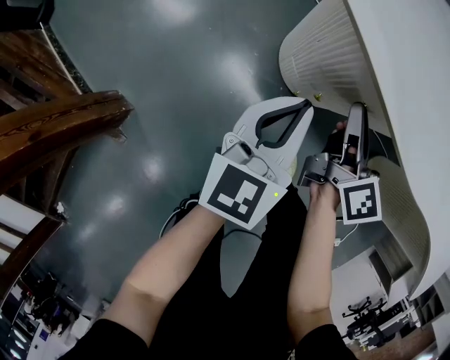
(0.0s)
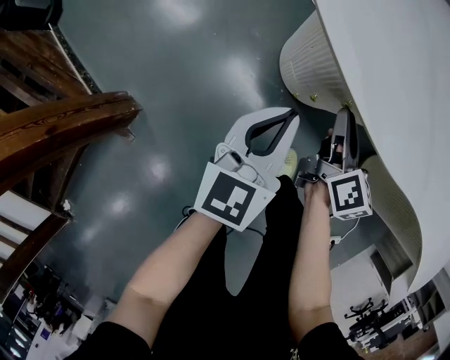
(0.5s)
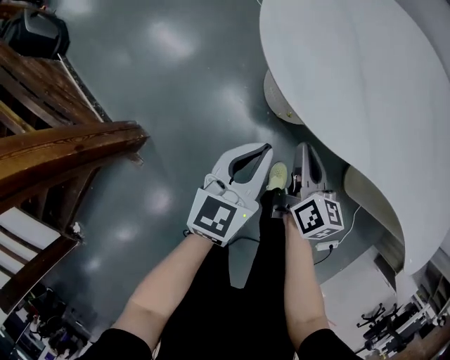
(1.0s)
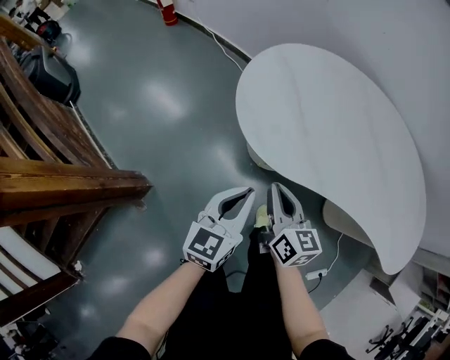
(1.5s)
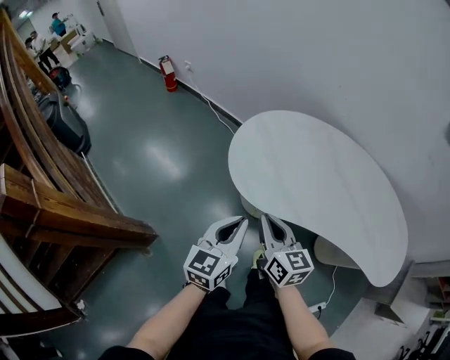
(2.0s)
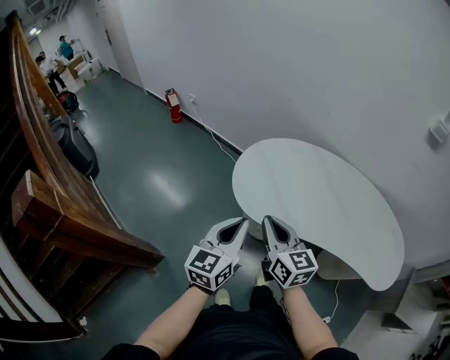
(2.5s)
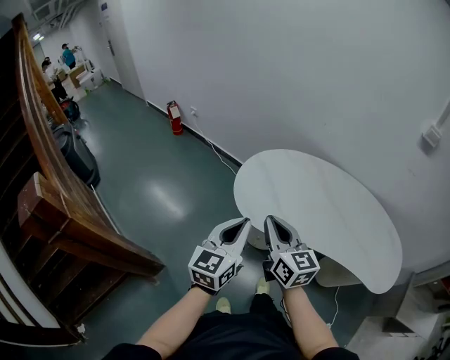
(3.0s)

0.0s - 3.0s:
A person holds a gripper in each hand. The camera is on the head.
0.0s - 1.5s: The two grippers go roughly 25 cm upward and backward. The right gripper swivels about 20 degrees, and closes up.
1.5s - 3.0s: The grippers both shift upward by approximately 25 cm.

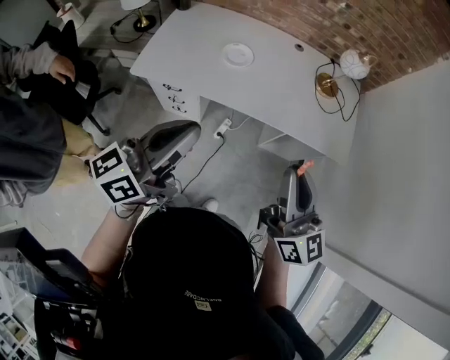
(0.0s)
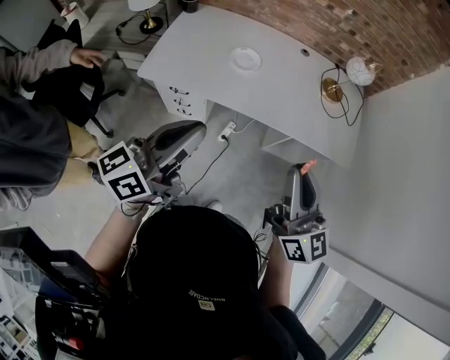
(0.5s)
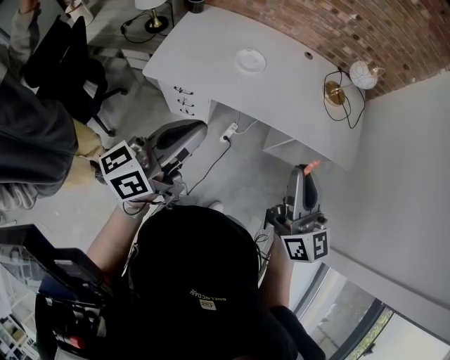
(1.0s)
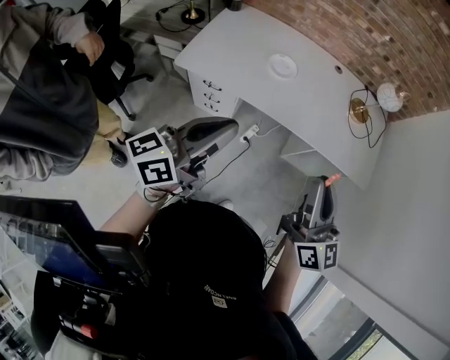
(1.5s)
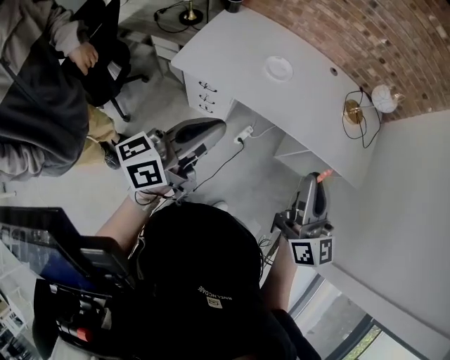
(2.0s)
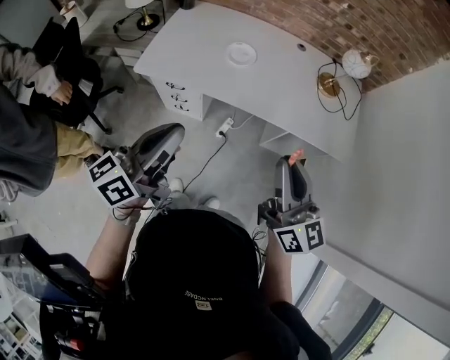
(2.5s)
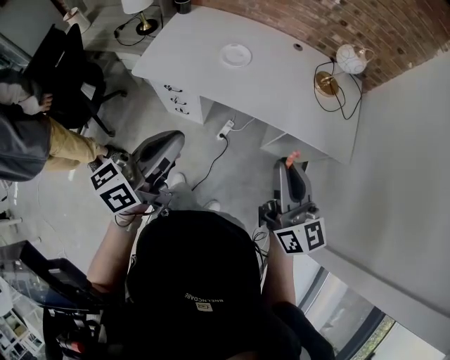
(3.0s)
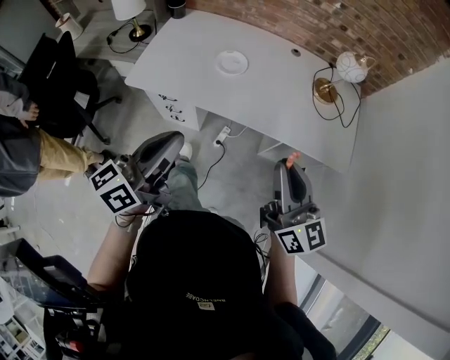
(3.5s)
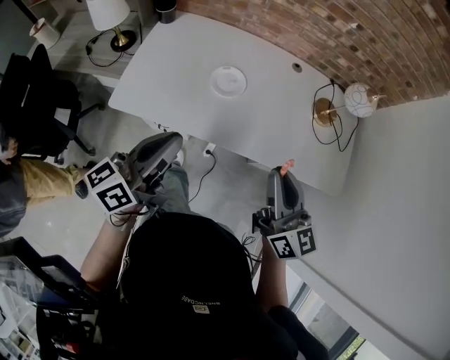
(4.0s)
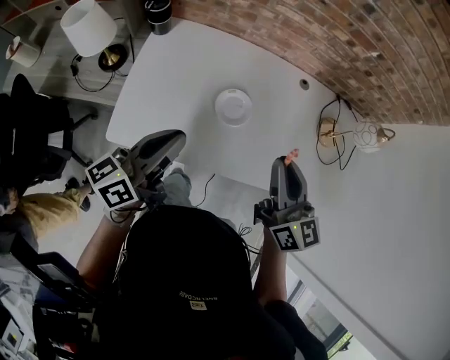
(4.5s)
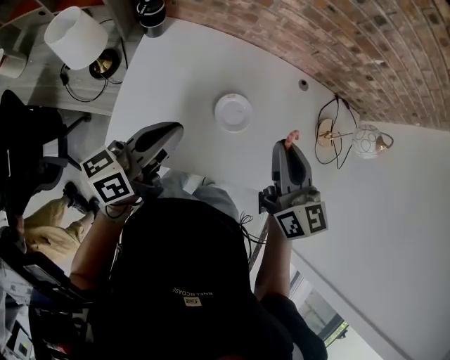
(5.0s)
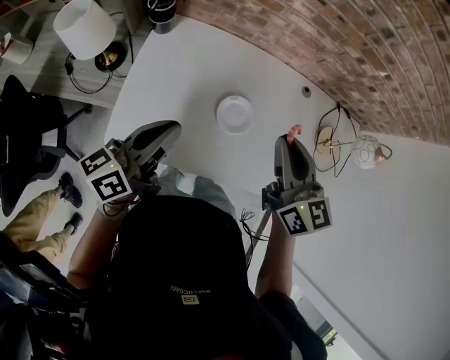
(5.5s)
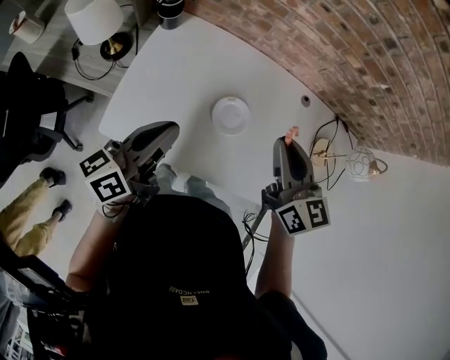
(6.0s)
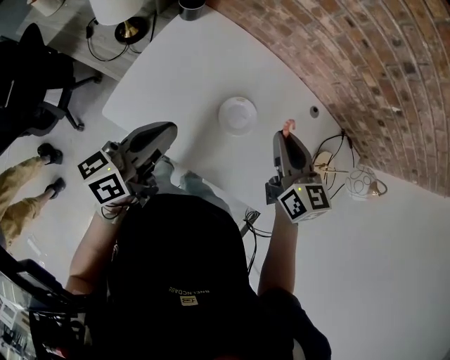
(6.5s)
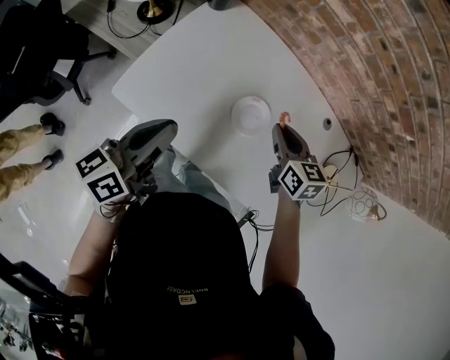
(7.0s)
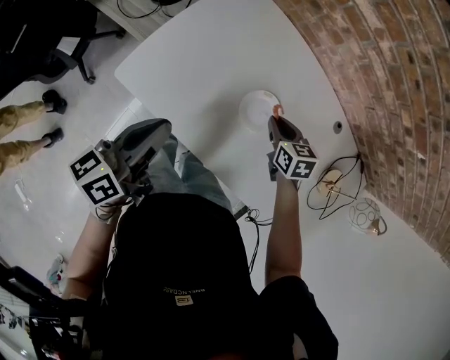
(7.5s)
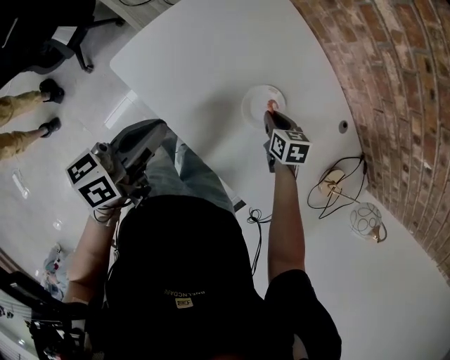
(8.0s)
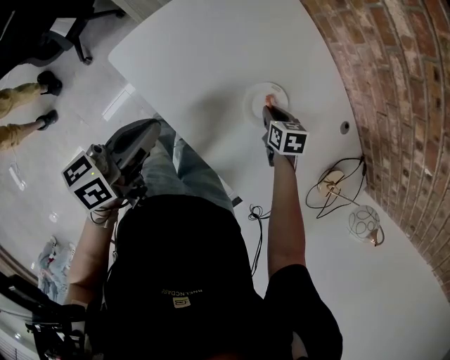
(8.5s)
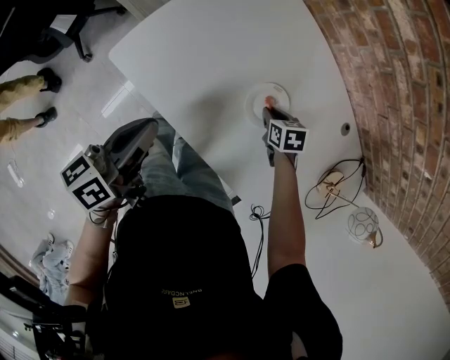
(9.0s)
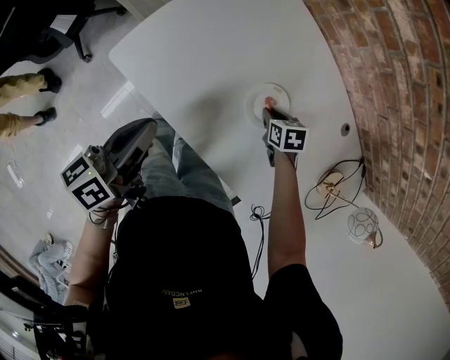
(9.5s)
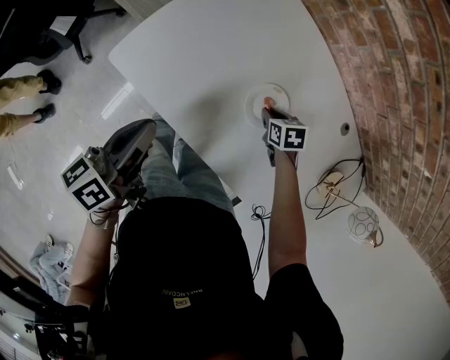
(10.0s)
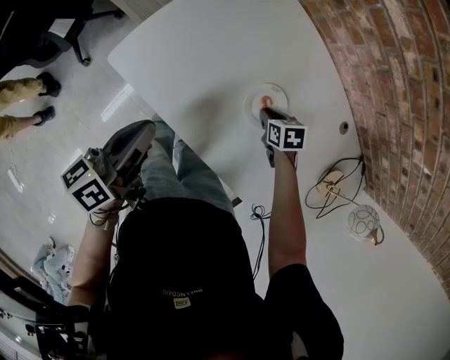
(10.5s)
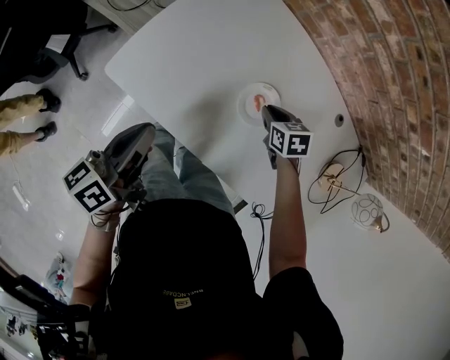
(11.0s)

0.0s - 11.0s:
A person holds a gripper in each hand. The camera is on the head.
0.0s - 2.0s: The grippers both shift to the left by some 5 cm.
2.0s - 3.5s: Both grippers move to the right, some 5 cm.
3.5s - 5.5s: Both grippers travel together forward and to the left, approximately 40 cm.
5.5s - 7.5s: The right gripper heads downward, covering roughly 30 cm, and tips its fingers downward by roughly 40 degrees; the left gripper is displaced downward by some 10 cm, and changes its angle by roughly 30 degrees.
7.5s - 9.0s: The right gripper travels downward by some 10 cm.
9.0s - 11.0s: The right gripper is displaced upward by about 5 cm.

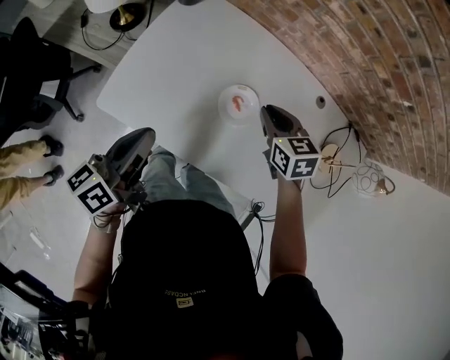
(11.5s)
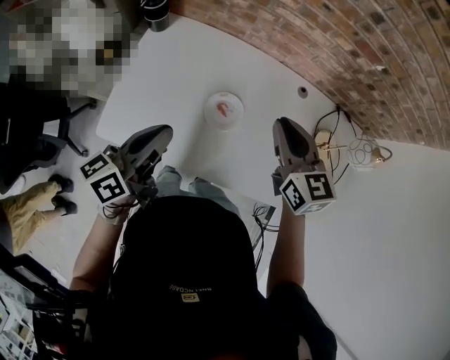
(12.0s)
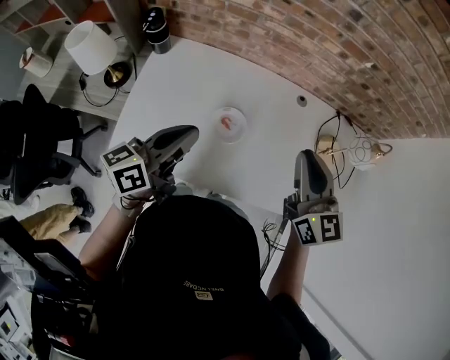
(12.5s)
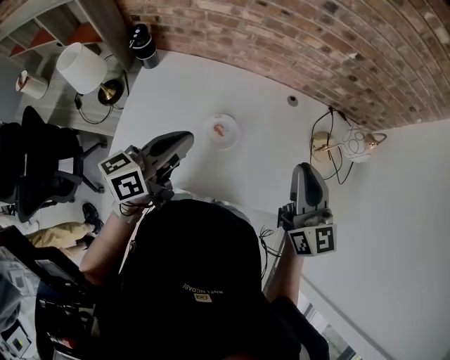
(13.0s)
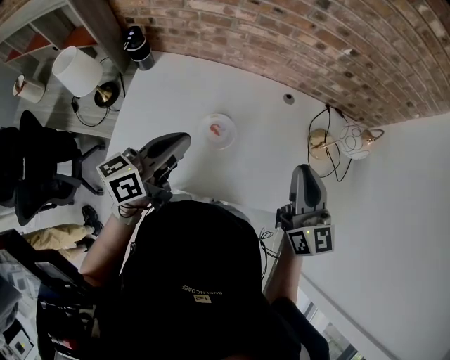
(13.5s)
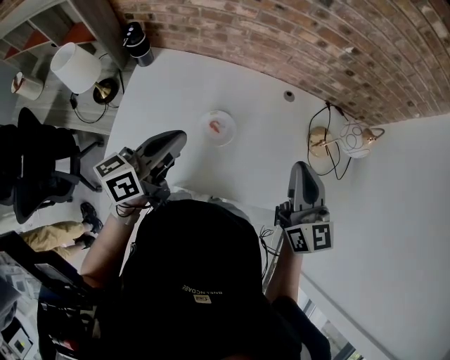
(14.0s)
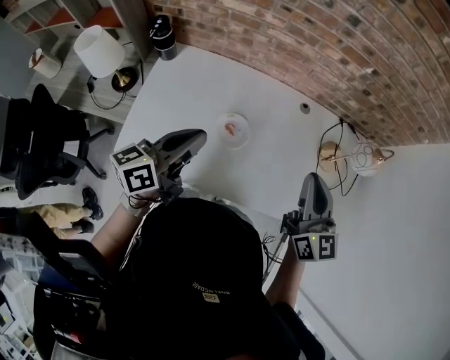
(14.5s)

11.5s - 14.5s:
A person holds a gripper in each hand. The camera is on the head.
11.5s - 13.0s: The left gripper shifts by some 15 cm, and swivels roughly 30 degrees; the right gripper moves upward, roughly 20 cm, and tips its fingers upward by about 40 degrees.
13.0s - 14.5s: The grippers move only a little.

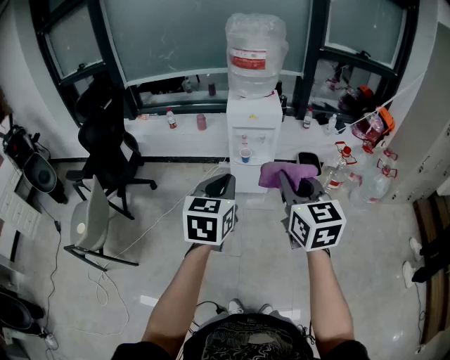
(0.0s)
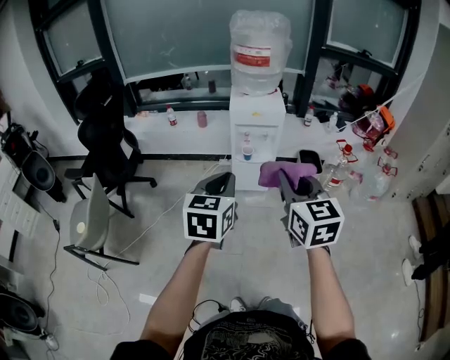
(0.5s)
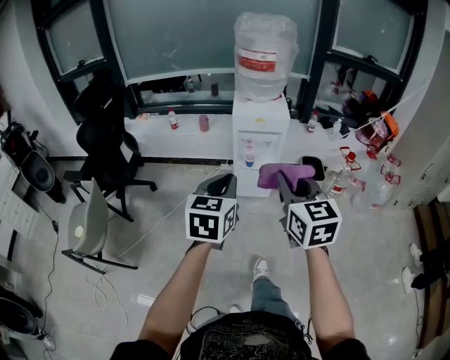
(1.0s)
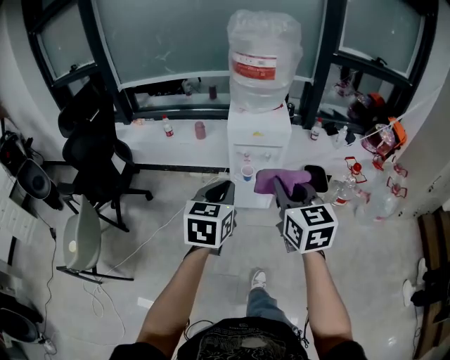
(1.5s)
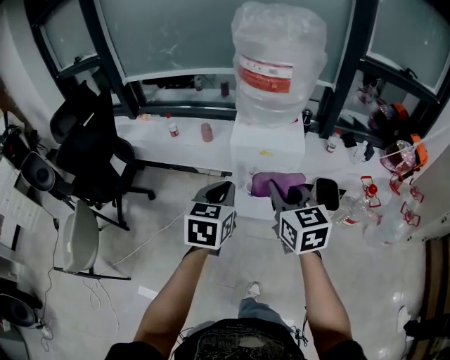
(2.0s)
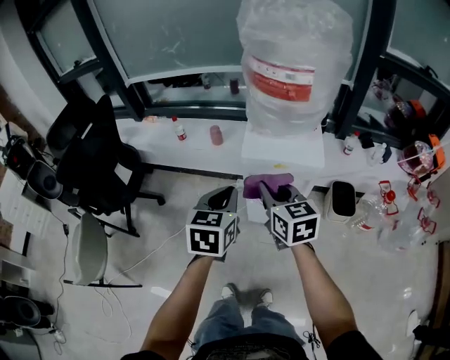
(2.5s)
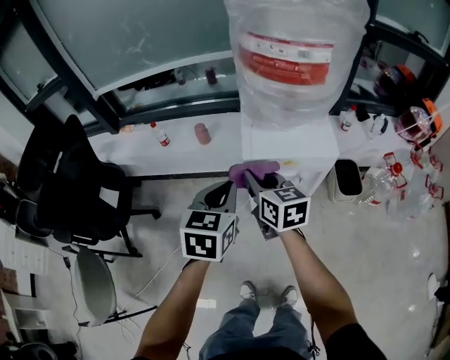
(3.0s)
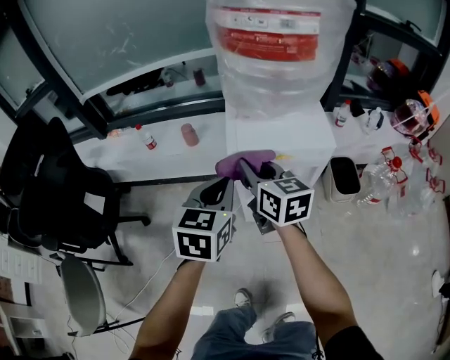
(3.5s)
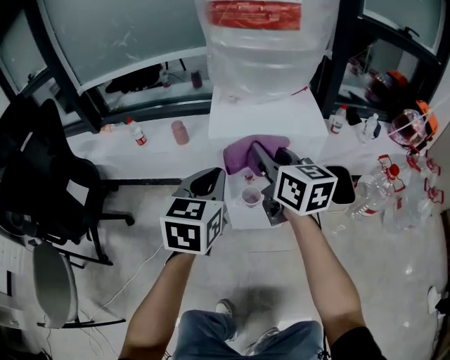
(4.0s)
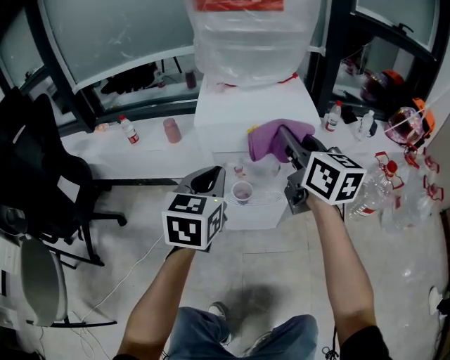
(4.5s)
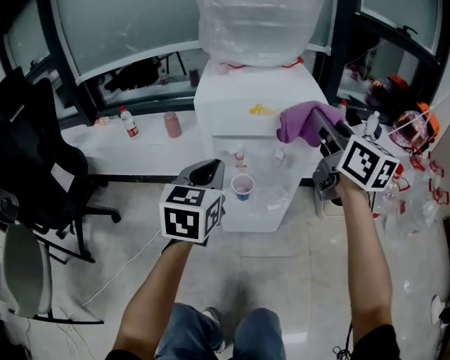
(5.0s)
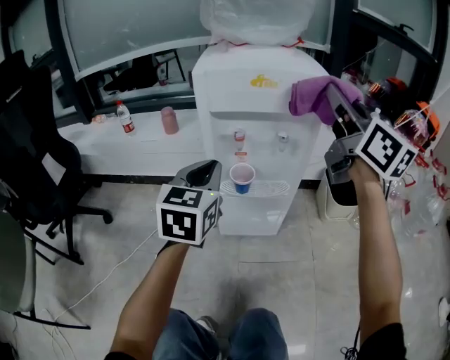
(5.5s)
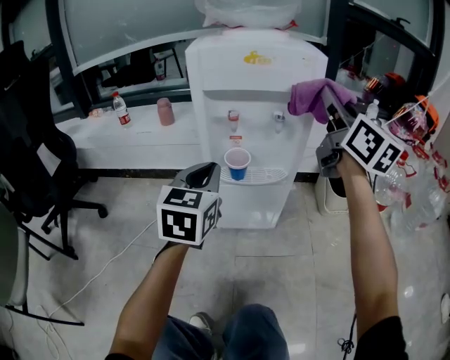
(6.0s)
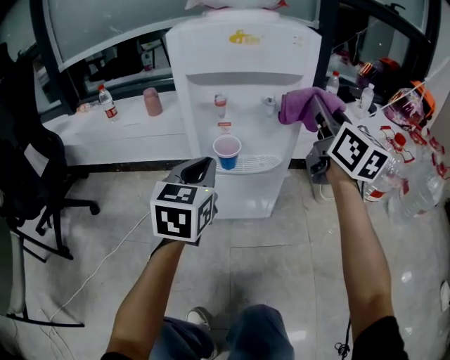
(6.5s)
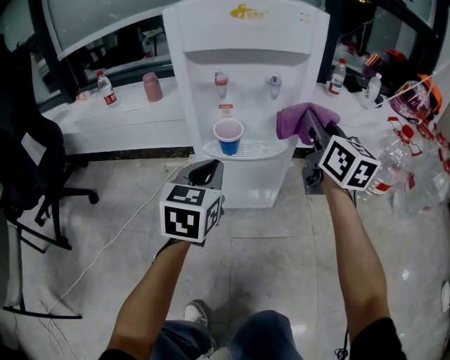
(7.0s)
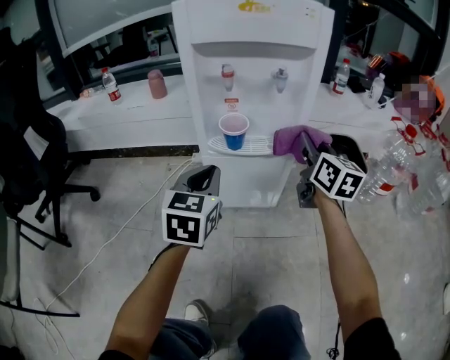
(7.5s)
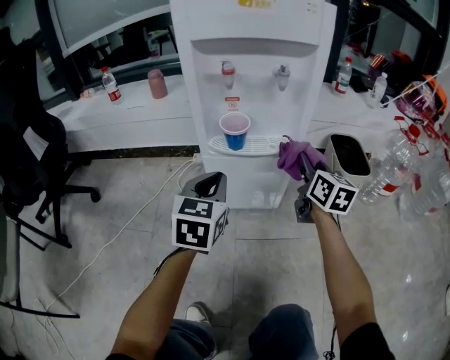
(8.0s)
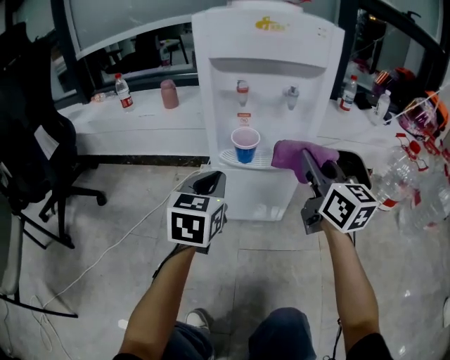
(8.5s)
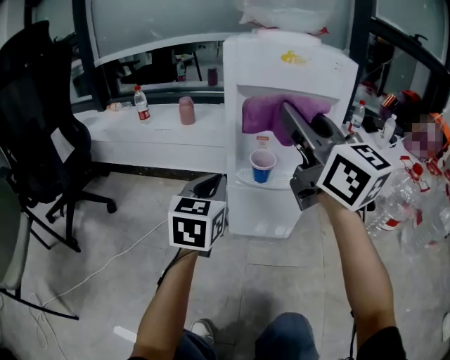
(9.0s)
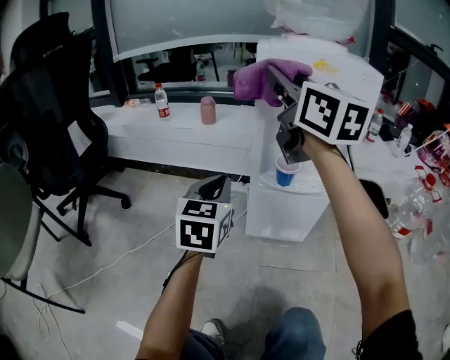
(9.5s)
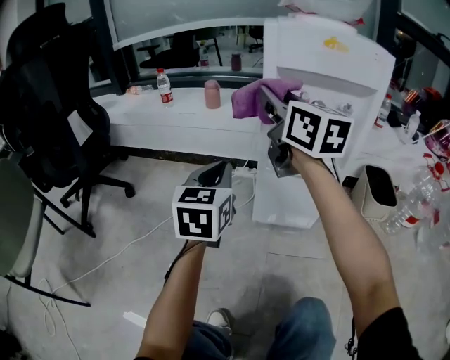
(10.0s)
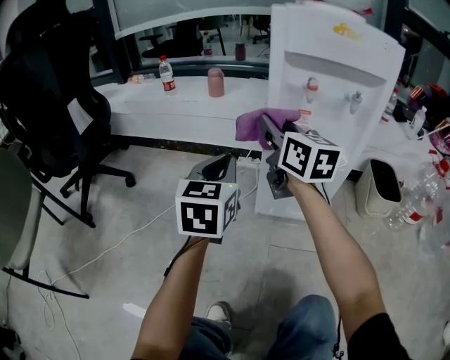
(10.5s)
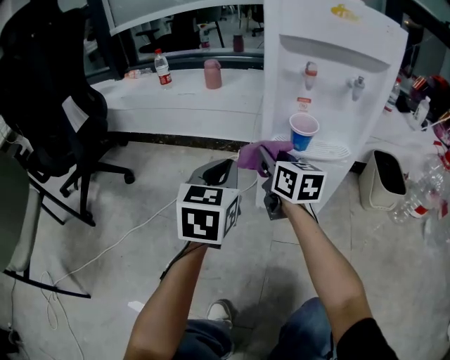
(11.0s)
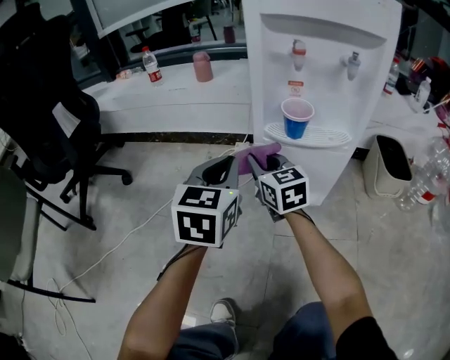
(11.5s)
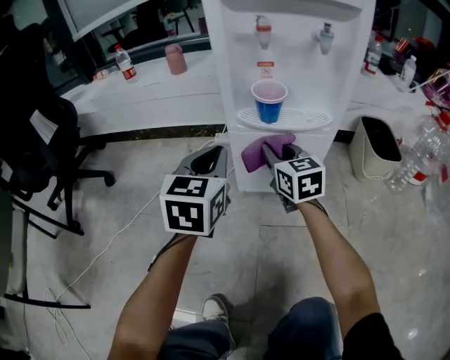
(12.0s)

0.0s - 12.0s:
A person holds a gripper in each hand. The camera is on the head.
0.0s - 2.0s: The grippers both shift forward by roughly 30 cm.
2.0s - 4.0s: Both grippers travel together forward and downward, some 25 cm.
4.0s - 6.0s: The left gripper moves downward, approximately 20 cm; the right gripper shifts approximately 20 cm to the right, and turns by about 30 degrees.
6.0s - 8.0s: The left gripper shifts approximately 15 cm downward. Meanwhile the right gripper is displaced downward by about 30 cm, and swivels approximately 30 degrees.
8.0s - 10.0s: The left gripper travels to the left and upward by some 15 cm. The right gripper moves to the left and upward, roughly 40 cm, and changes its angle by approximately 30 degrees.
10.0s - 12.0s: The left gripper travels downward and to the right by some 10 cm. The right gripper moves downward, approximately 30 cm, and rotates approximately 20 degrees.
